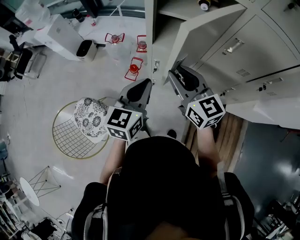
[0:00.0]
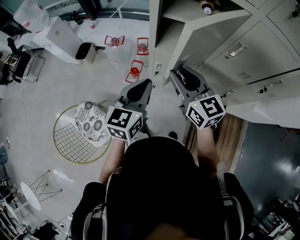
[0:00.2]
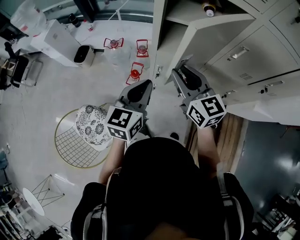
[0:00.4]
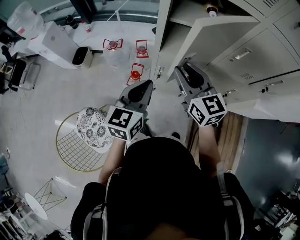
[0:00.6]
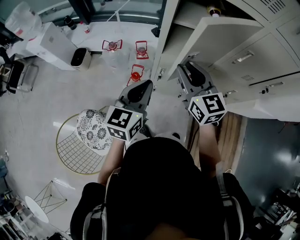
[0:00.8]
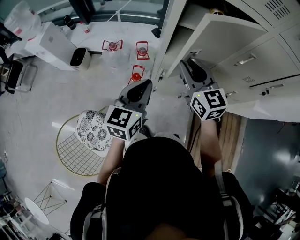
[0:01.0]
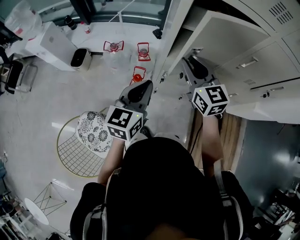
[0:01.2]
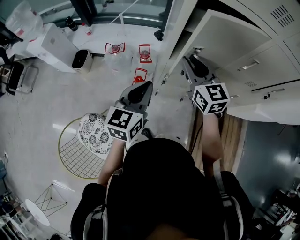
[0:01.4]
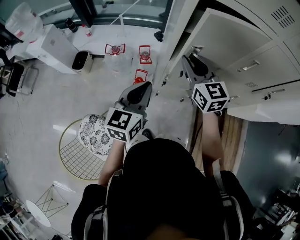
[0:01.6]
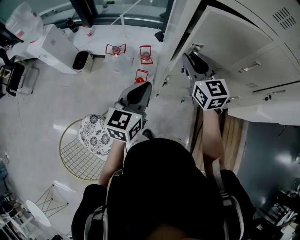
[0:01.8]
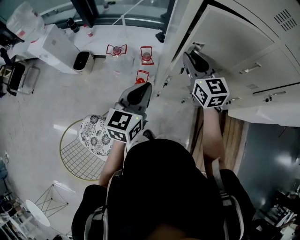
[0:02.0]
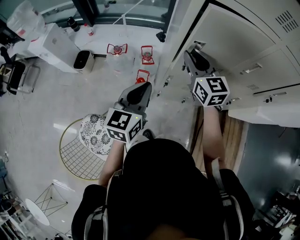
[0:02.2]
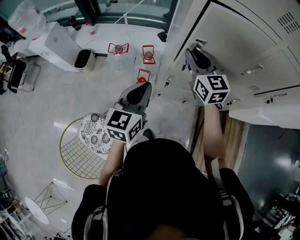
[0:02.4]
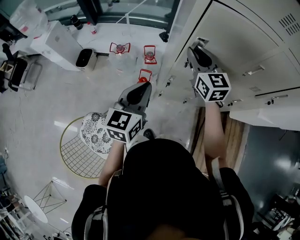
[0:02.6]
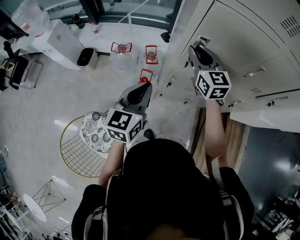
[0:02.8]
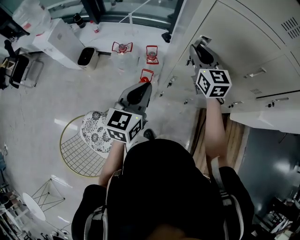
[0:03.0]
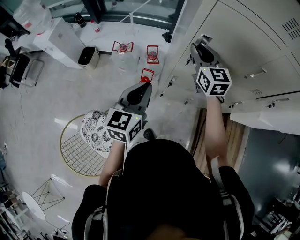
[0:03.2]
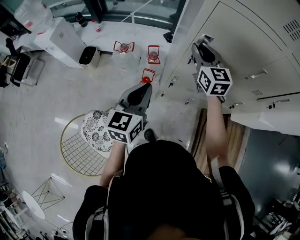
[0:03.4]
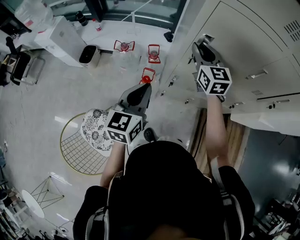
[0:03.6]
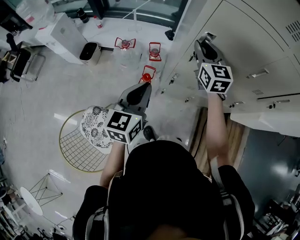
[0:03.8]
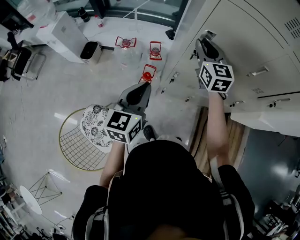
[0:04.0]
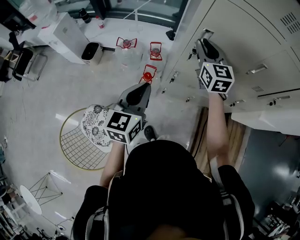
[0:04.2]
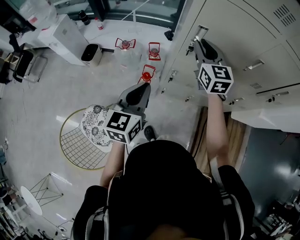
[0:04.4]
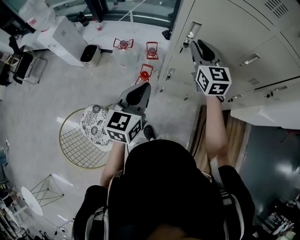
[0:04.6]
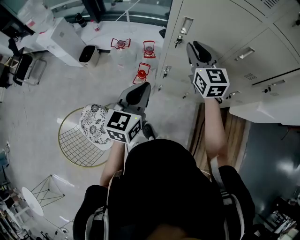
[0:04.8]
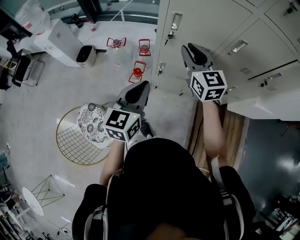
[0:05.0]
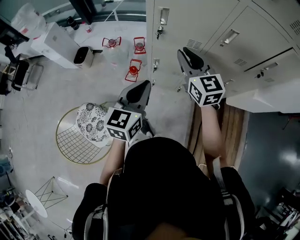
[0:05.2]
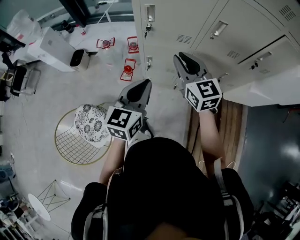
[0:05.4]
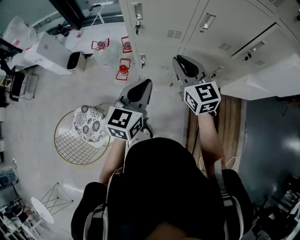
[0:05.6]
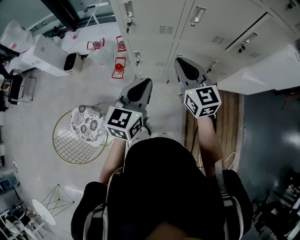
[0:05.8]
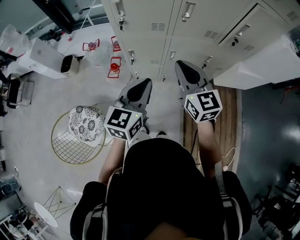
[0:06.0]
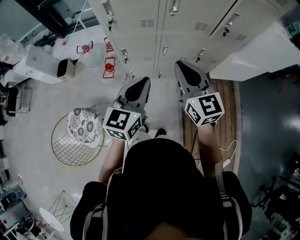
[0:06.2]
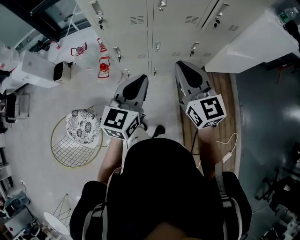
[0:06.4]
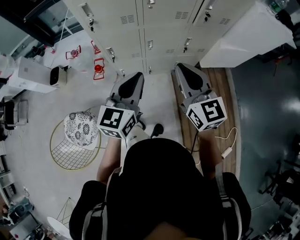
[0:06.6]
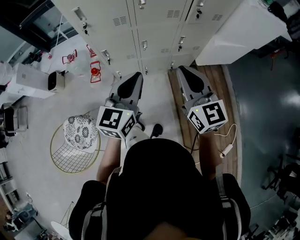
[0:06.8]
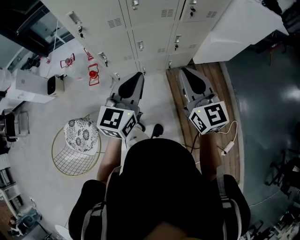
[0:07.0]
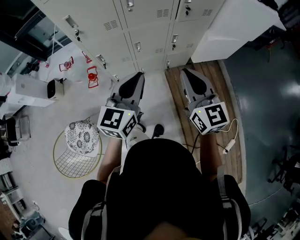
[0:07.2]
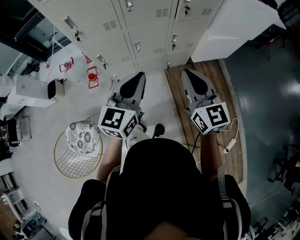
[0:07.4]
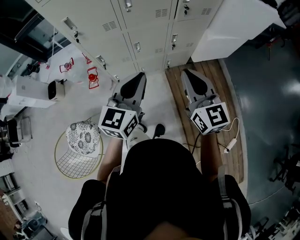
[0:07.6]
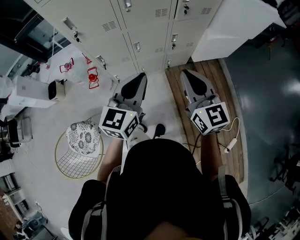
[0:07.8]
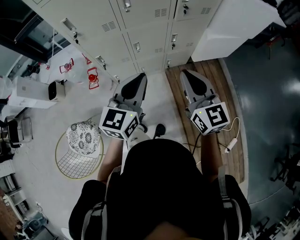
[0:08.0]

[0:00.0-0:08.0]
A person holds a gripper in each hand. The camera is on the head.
0:00.0 to 0:01.6: The left gripper moves to the left and forward, roughly 15 cm. Meanwhile the right gripper moves forward and to the left, some 15 cm.
0:01.6 to 0:03.2: The right gripper goes about 5 cm forward.
0:03.2 to 0:04.8: The left gripper heads backward and to the right, covering roughly 10 cm. Meanwhile the right gripper goes approximately 10 cm backward.
0:04.8 to 0:06.4: The left gripper is displaced to the right and backward by roughly 30 cm. Meanwhile the right gripper moves backward and to the right, about 35 cm.
0:06.4 to 0:08.0: The left gripper goes some 10 cm to the right. The right gripper moves to the right and backward, approximately 15 cm.

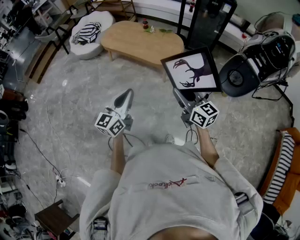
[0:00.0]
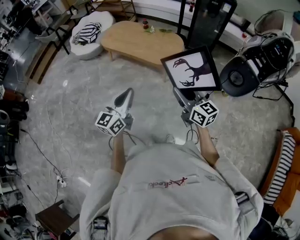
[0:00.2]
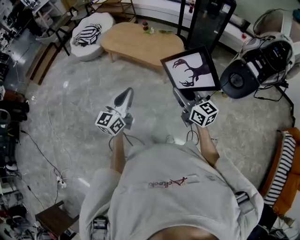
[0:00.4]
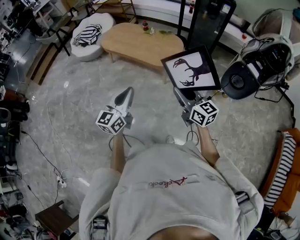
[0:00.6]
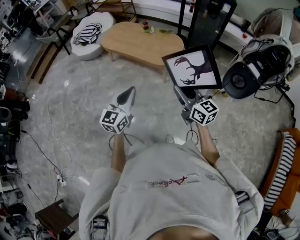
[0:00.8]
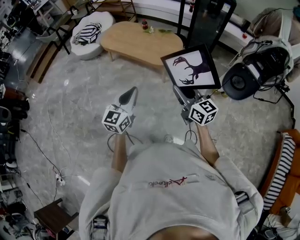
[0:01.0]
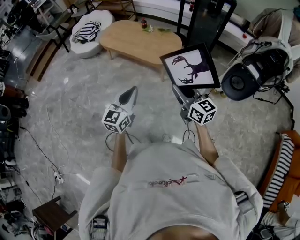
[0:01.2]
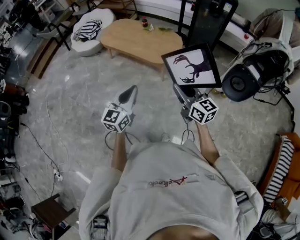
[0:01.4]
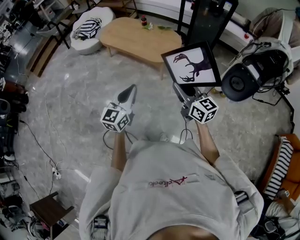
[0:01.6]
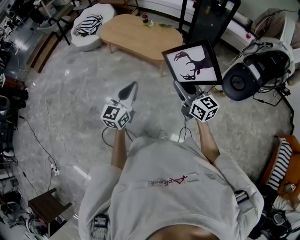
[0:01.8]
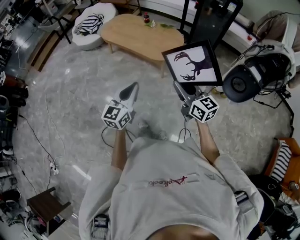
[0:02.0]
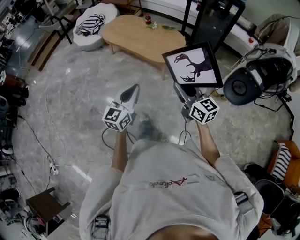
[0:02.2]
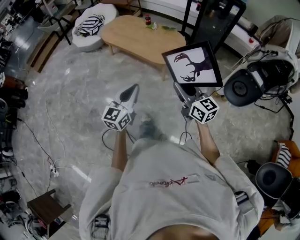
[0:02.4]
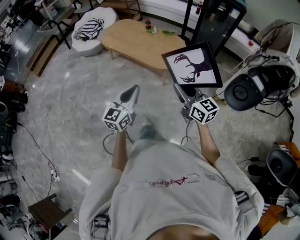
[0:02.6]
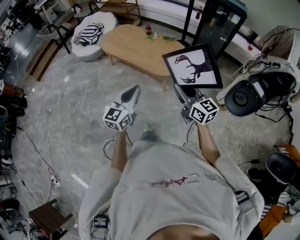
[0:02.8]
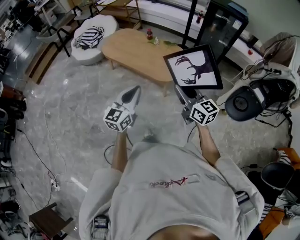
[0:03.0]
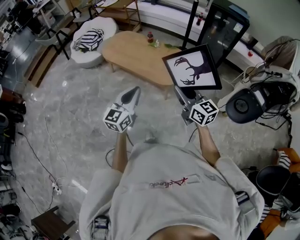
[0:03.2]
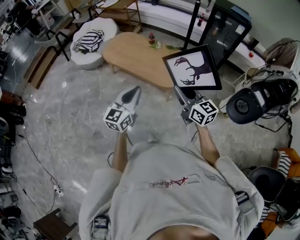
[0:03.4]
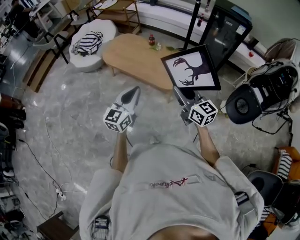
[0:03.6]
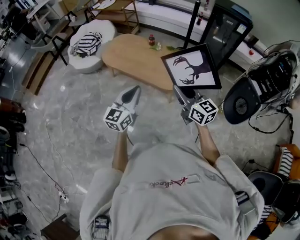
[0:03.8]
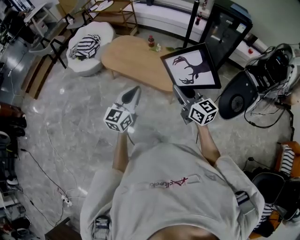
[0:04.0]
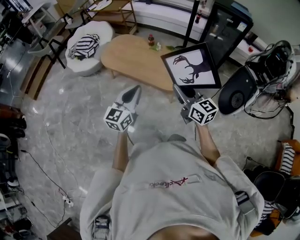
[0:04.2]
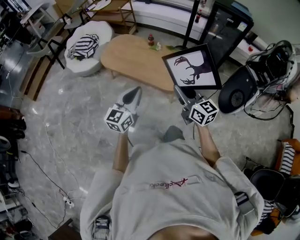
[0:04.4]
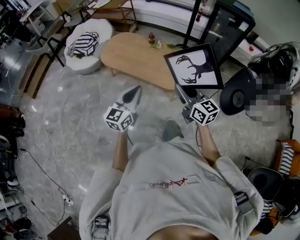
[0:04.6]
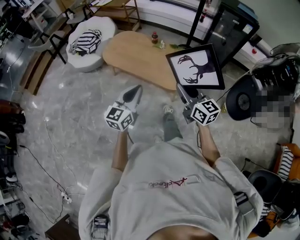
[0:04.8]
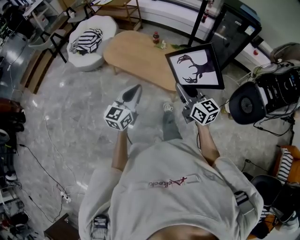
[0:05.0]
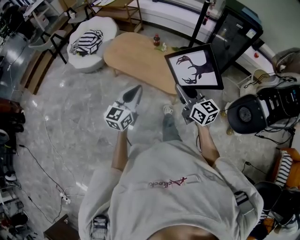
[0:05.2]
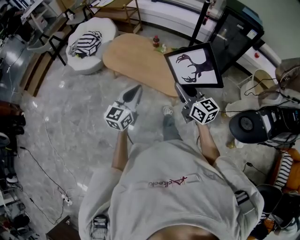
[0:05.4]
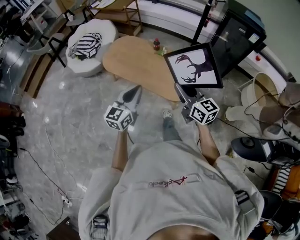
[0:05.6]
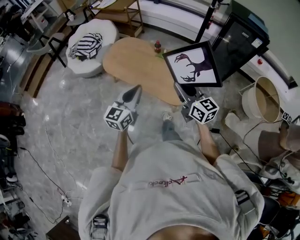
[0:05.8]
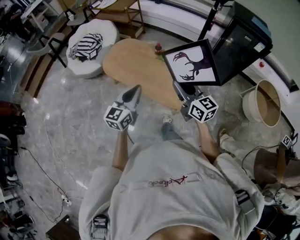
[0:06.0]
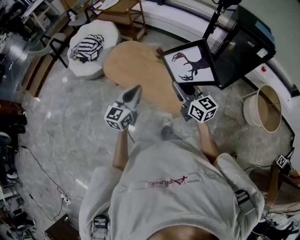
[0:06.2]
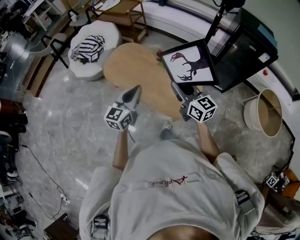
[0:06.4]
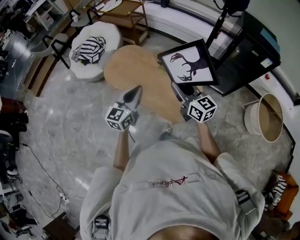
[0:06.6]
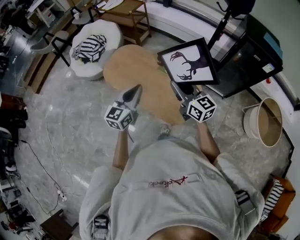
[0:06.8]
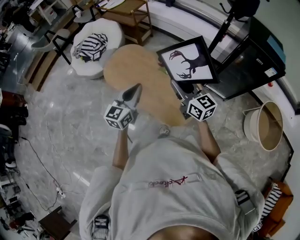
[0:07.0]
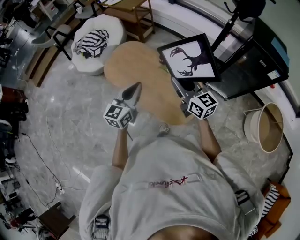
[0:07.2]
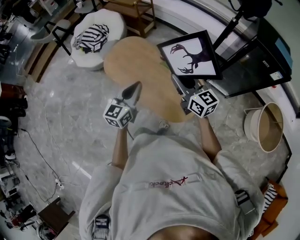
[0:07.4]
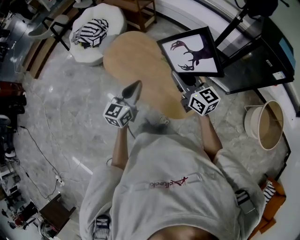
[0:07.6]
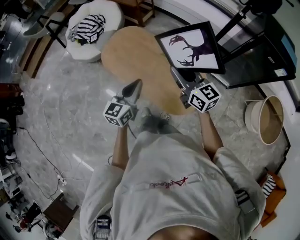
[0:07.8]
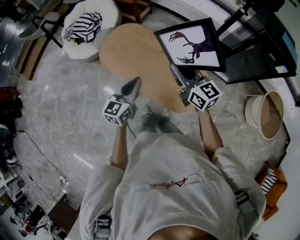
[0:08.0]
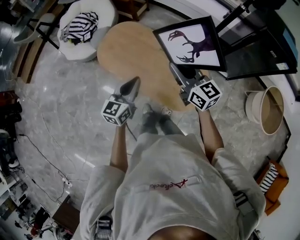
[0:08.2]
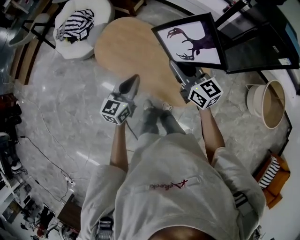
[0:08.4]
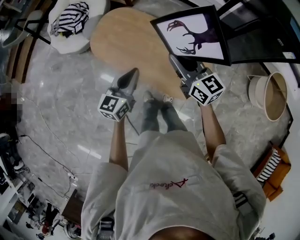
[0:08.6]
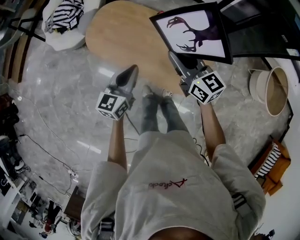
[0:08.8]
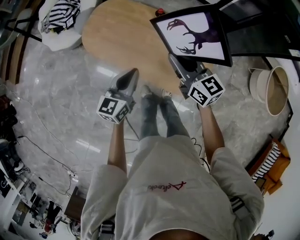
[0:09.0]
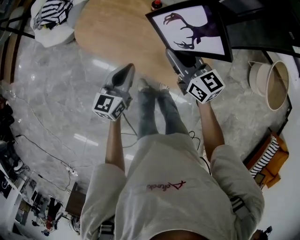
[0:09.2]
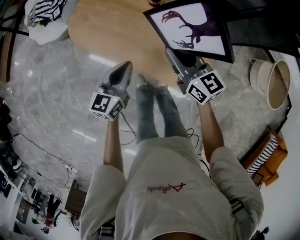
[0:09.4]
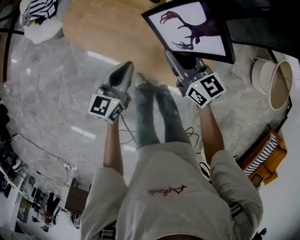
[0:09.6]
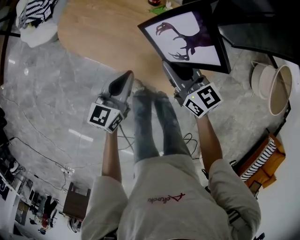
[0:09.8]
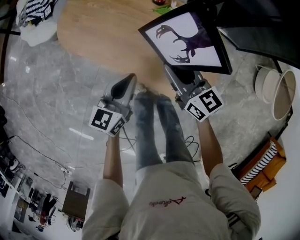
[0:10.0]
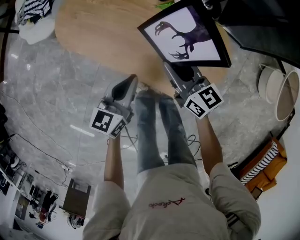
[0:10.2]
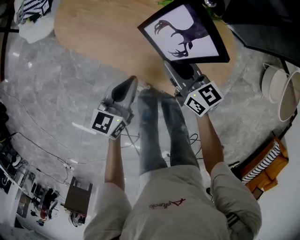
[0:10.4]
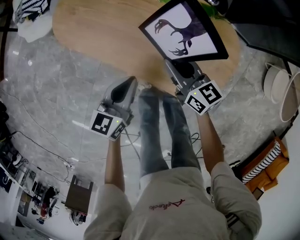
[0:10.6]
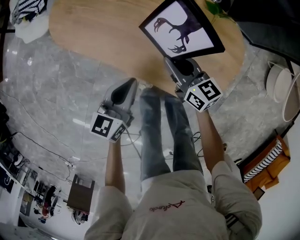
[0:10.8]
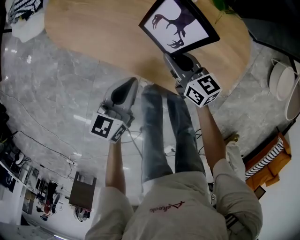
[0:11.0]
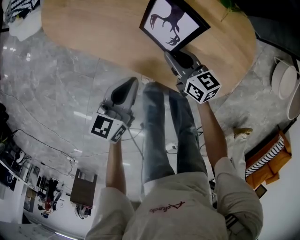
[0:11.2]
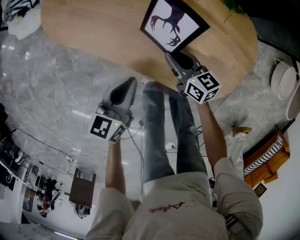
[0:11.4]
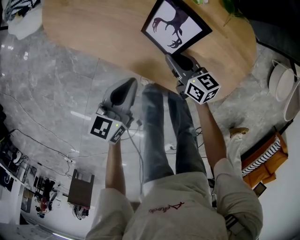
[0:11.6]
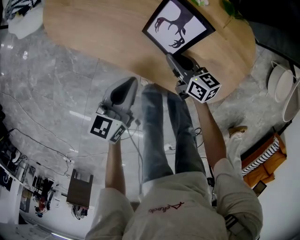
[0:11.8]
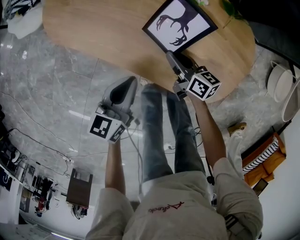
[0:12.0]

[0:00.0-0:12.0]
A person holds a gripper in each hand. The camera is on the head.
0:00.0 to 0:01.6: The grippers both shift to the right by approximately 10 cm.
0:01.6 to 0:03.0: Both grippers travel together forward, approximately 15 cm.
0:03.0 to 0:04.4: Both grippers move forward and to the left, approximately 20 cm.
0:04.4 to 0:06.0: The two grippers go about 20 cm forward.
0:06.0 to 0:07.6: Both grippers travel together forward, about 20 cm.
0:07.6 to 0:09.0: The left gripper is displaced downward and forward by some 15 cm, while the right gripper moves downward, to the left and forward, roughly 15 cm.
0:09.0 to 0:10.4: The grippers both shift downward by about 25 cm.
0:10.4 to 0:12.0: The right gripper travels downward by roughly 20 cm, and changes its angle by about 30 degrees. Meanwhile the left gripper moves downward and to the left, about 10 cm.

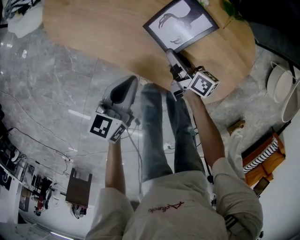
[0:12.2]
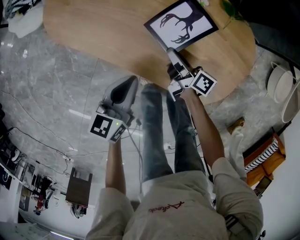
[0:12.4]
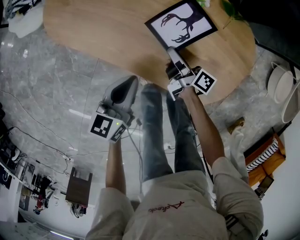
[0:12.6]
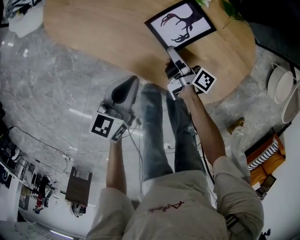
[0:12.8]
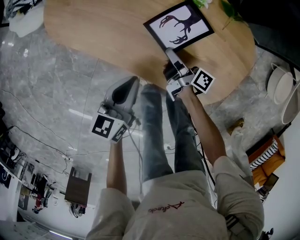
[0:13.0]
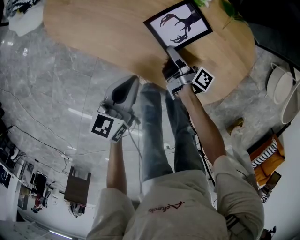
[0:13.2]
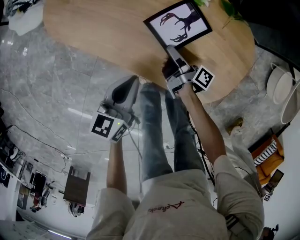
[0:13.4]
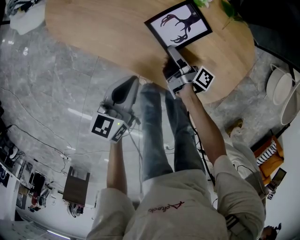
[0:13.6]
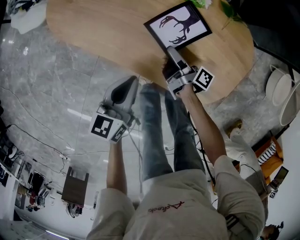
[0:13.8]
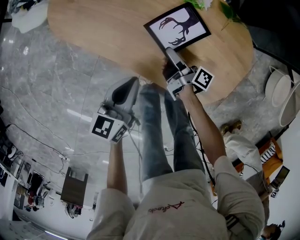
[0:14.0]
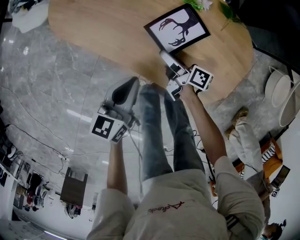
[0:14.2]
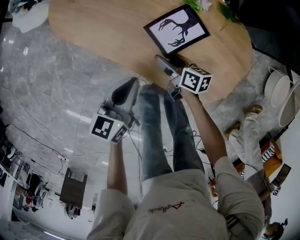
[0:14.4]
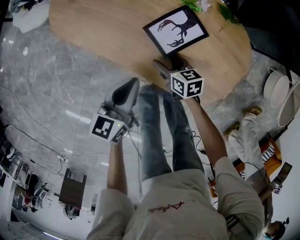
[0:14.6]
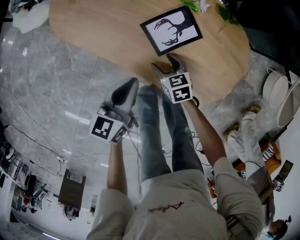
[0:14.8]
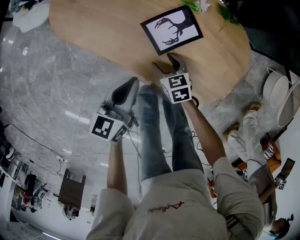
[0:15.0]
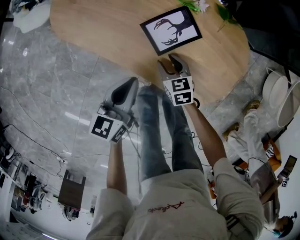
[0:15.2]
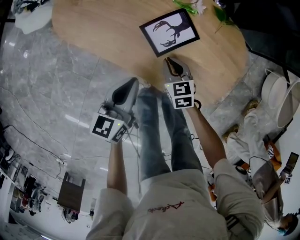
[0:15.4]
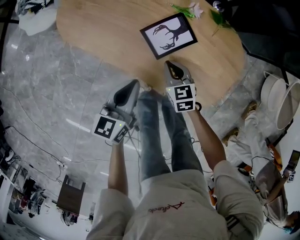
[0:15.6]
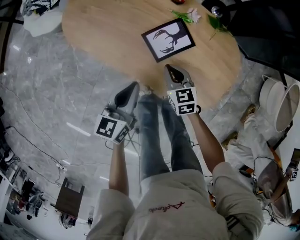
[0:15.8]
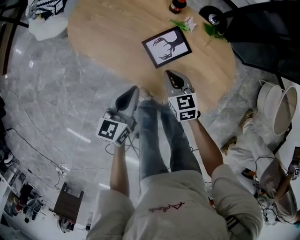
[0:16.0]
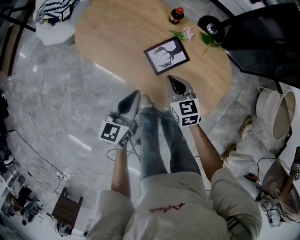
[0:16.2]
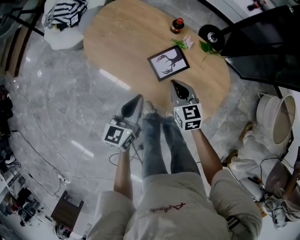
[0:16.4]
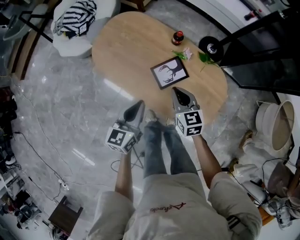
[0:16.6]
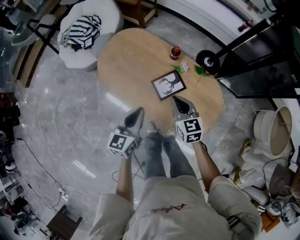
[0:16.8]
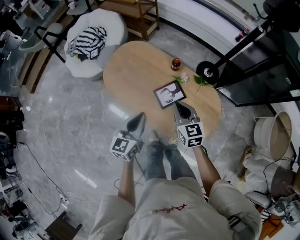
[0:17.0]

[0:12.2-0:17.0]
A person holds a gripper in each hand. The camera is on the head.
0:12.2 to 0:13.8: The right gripper rotates roughly 30 degrees, and opens up.
0:13.8 to 0:15.4: The right gripper twists approximately 80 degrees counterclockwise, seen from behind, and closes up.
0:15.4 to 0:17.0: Both grippers move upward, roughly 30 cm. The right gripper turns by some 20 degrees.
